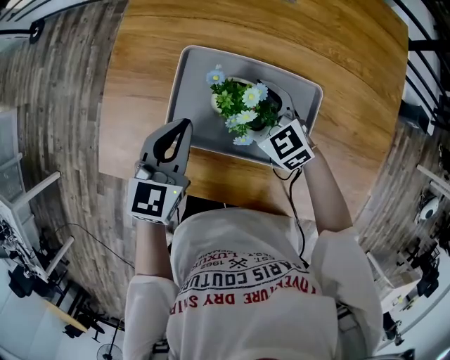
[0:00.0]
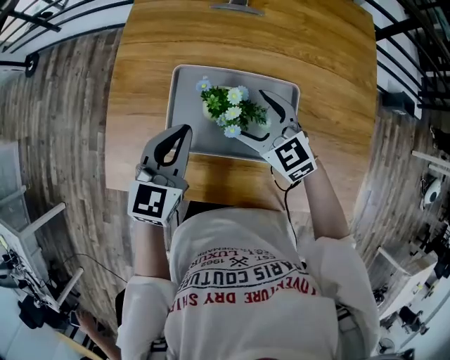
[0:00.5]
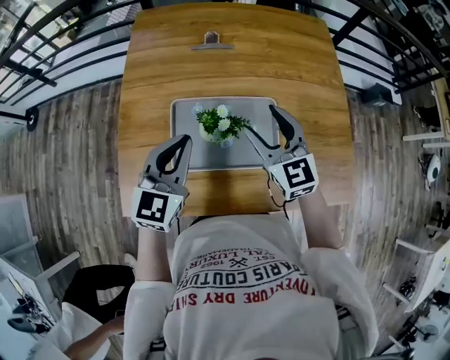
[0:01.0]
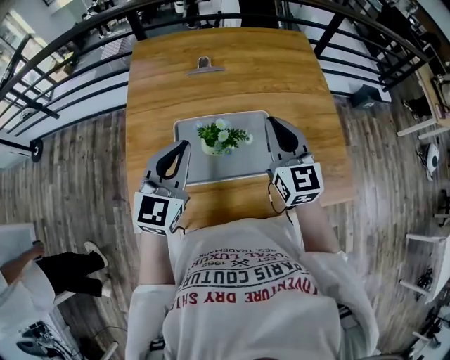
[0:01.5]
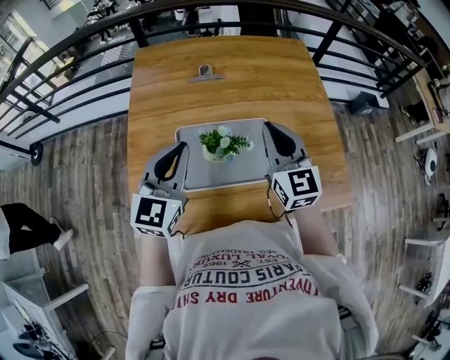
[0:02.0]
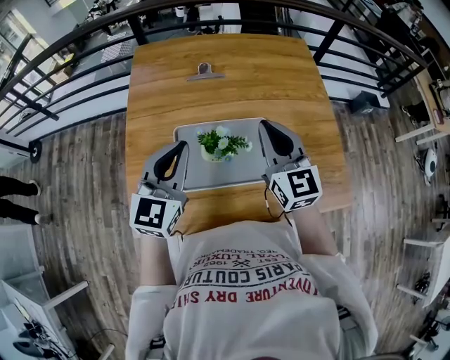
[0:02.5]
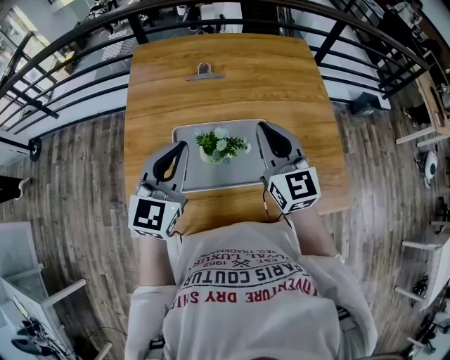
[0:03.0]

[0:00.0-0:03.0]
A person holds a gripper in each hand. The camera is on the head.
0:00.0 to 0:01.5: The left gripper is displaced upward by some 15 cm, and turns by approximately 30 degrees; the right gripper goes some 25 cm upward, turns by roughly 60 degrees, and closes.
0:01.5 to 0:03.0: The grippers move only a little.

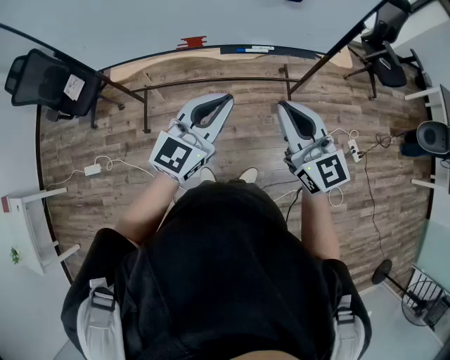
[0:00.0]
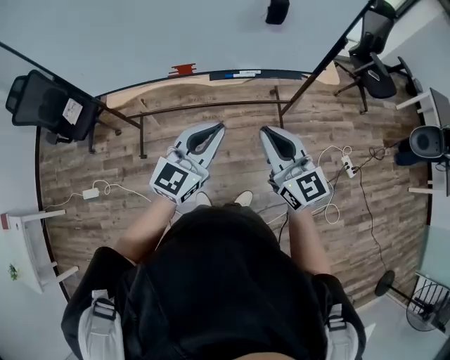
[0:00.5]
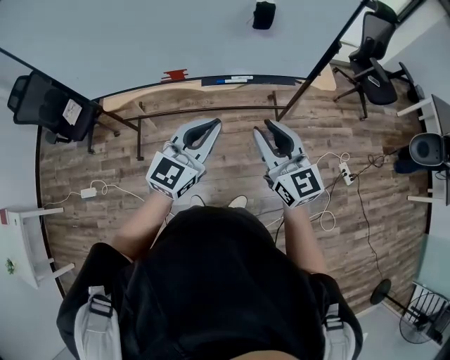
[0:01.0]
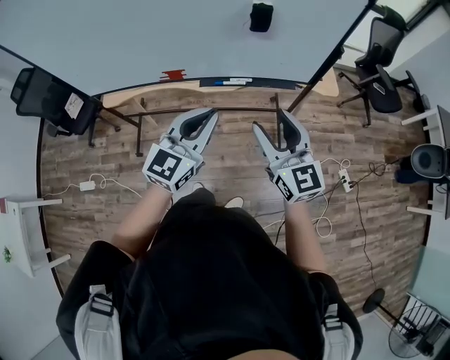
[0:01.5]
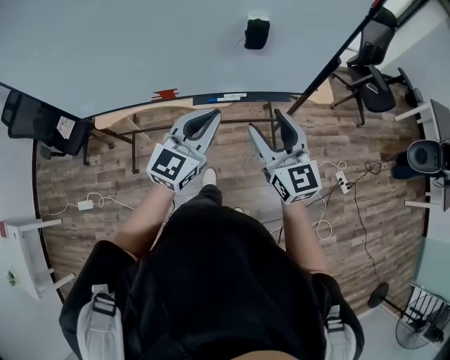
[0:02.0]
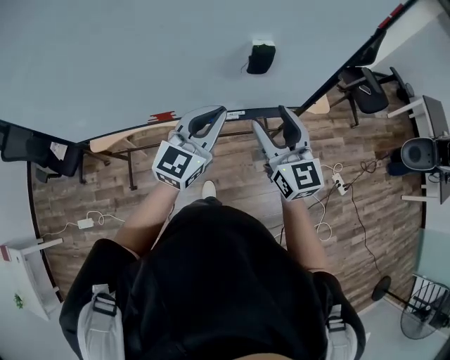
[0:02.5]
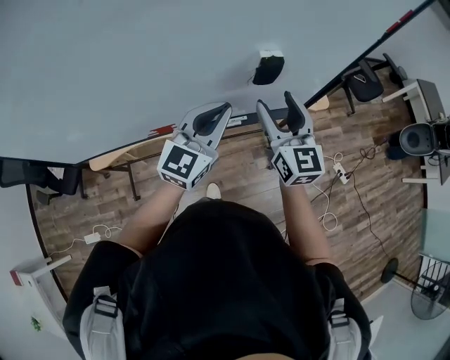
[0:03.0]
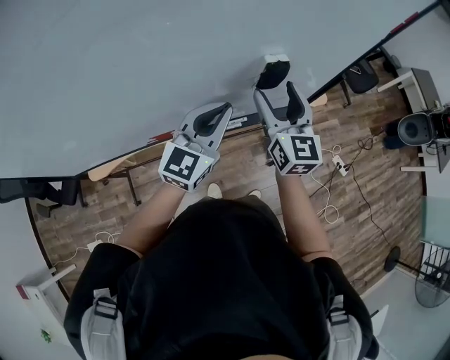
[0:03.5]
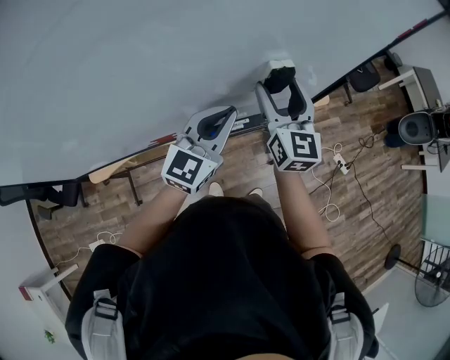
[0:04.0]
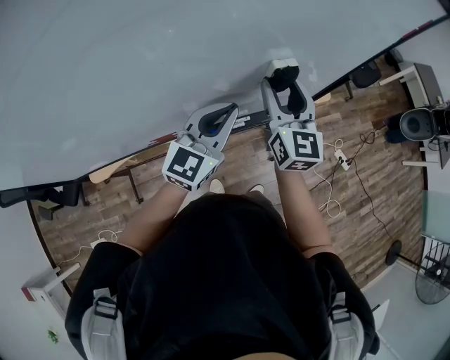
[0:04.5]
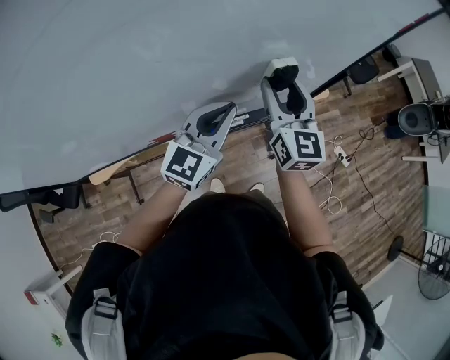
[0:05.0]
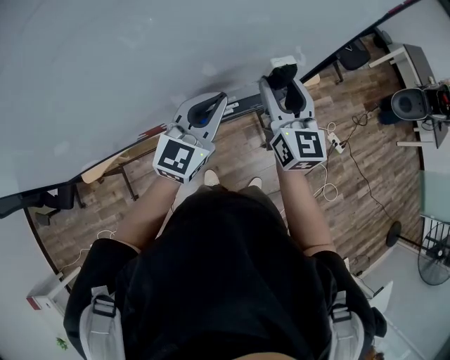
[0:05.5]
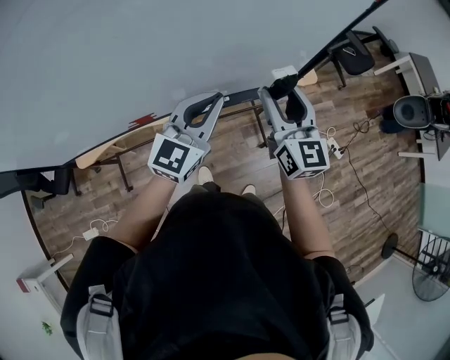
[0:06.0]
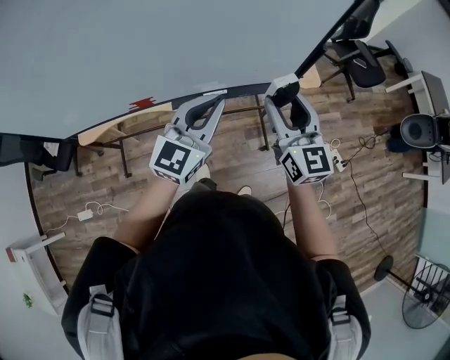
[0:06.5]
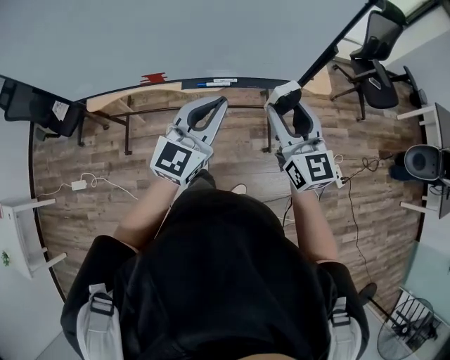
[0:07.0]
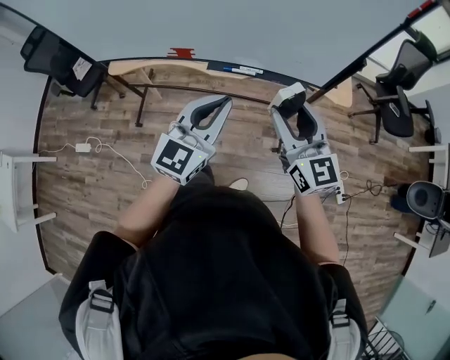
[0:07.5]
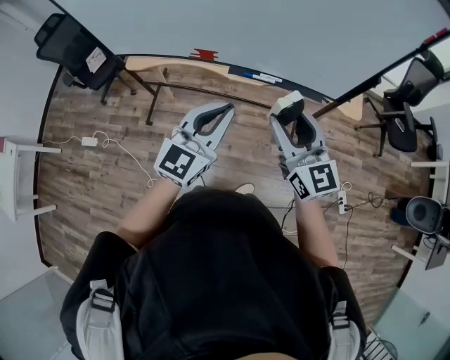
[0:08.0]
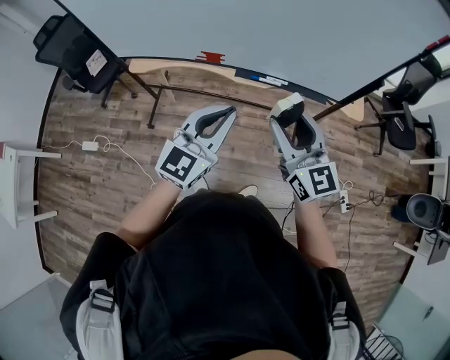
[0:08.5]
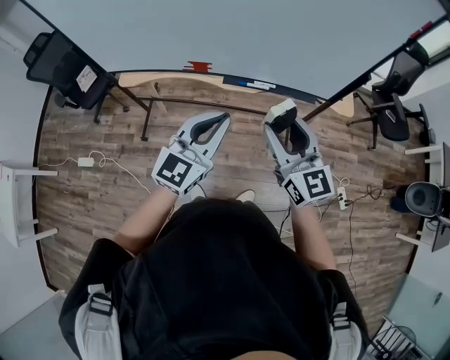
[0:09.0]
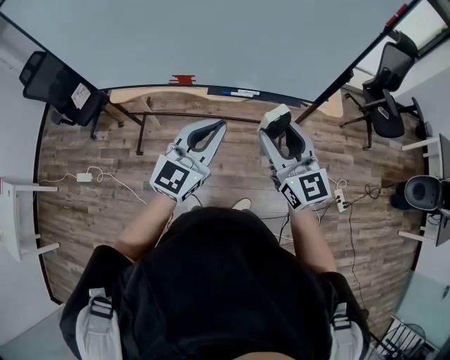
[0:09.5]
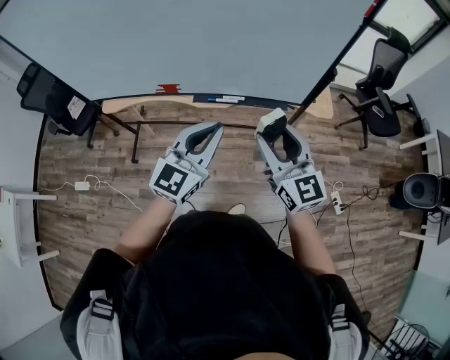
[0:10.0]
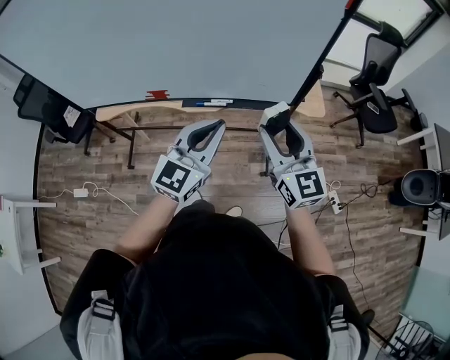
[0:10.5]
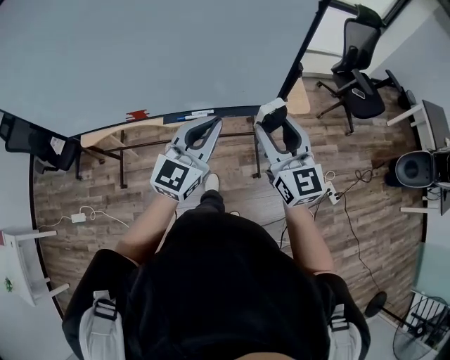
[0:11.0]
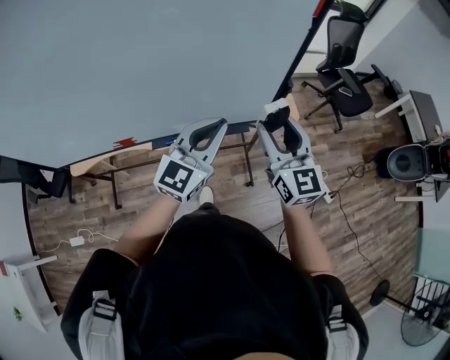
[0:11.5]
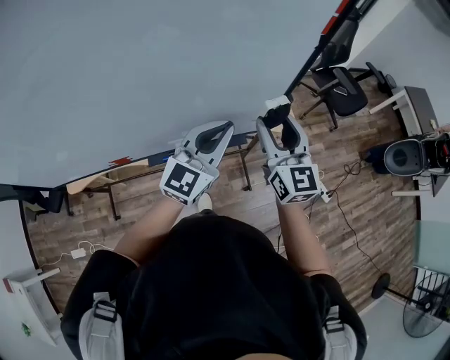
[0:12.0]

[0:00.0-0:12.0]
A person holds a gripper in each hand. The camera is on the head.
0:00.0 to 0:02.0: The two grippers go about 20 cm forward and to the right. The right gripper opens its fingers.
0:02.0 to 0:04.0: The two grippers go roughly 20 cm forward. The right gripper turns by approximately 30 degrees.
0:04.0 to 0:06.0: The right gripper moves to the right and backward, some 10 cm; the left gripper is displaced to the right by approximately 5 cm.
0:06.0 to 0:08.0: The left gripper changes place by about 25 cm, and changes its angle by approximately 30 degrees; the right gripper changes place by approximately 20 cm, and turns by approximately 40 degrees.
0:08.0 to 0:10.0: The grippers both shift to the right by some 10 cm.
0:10.0 to 0:12.0: The right gripper goes approximately 25 cm forward, and rotates roughly 30 degrees; the left gripper moves forward and to the right, roughly 30 cm.

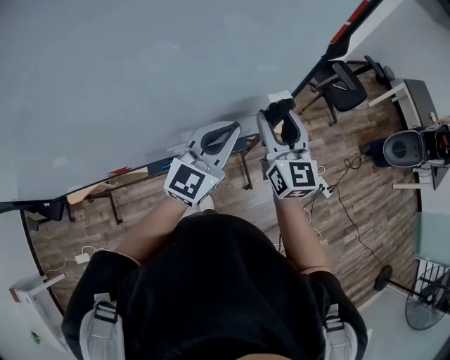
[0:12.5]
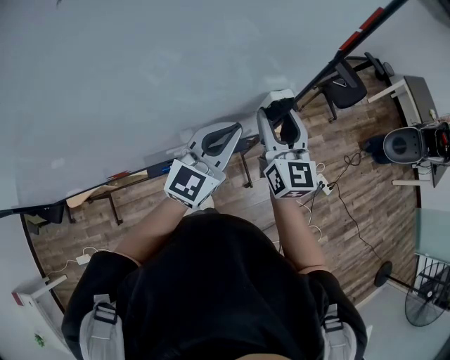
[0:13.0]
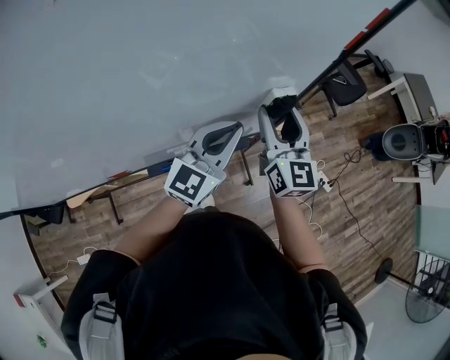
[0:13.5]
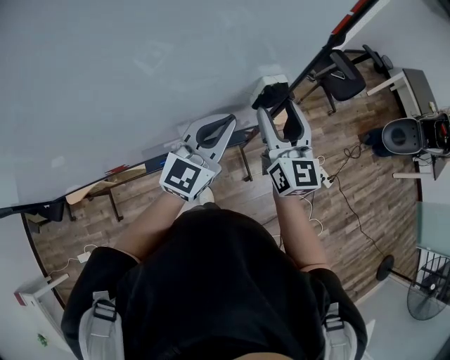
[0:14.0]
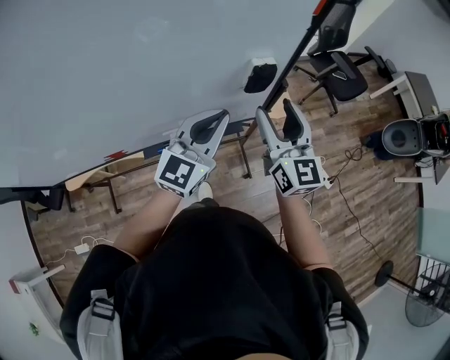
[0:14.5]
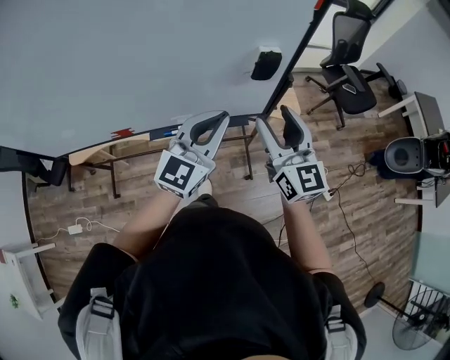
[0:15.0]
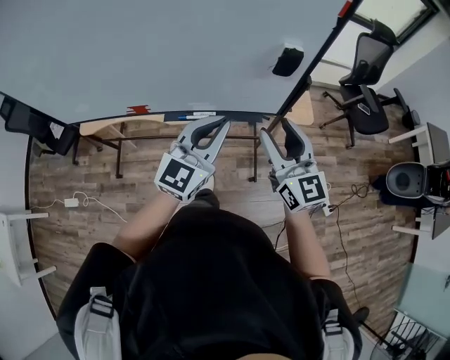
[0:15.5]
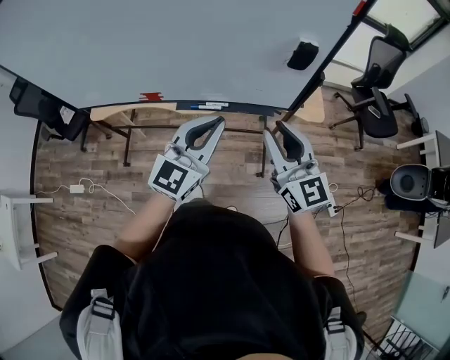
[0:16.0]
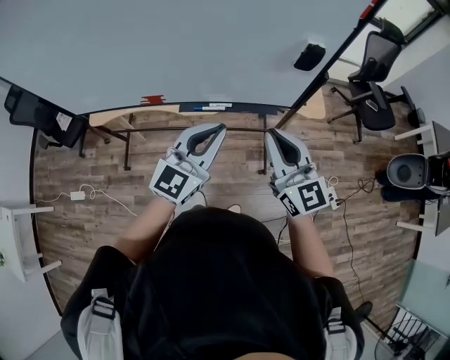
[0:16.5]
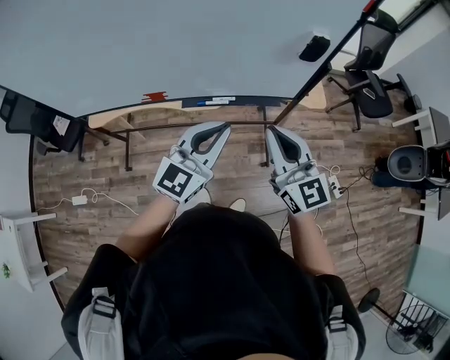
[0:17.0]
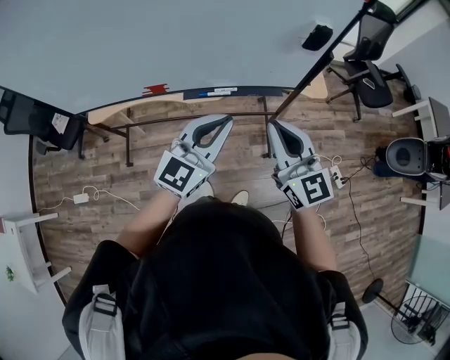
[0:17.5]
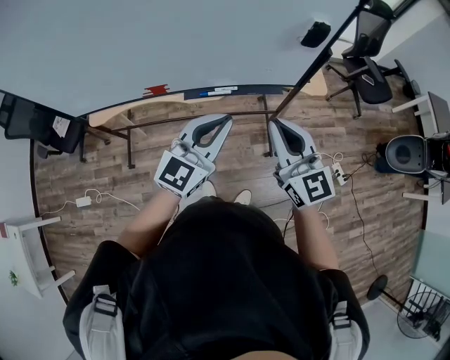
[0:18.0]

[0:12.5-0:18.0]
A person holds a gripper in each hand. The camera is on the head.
0:12.5 to 0:14.5: The right gripper changes place by about 5 cm.
0:14.5 to 0:16.0: The grippers both shift backward by roughly 20 cm. The right gripper changes its angle by some 30 degrees, and closes its fingers.
0:16.0 to 0:18.0: The left gripper travels to the left by some 5 cm. The right gripper is displaced to the left and backward by approximately 10 cm, and closes its fingers.

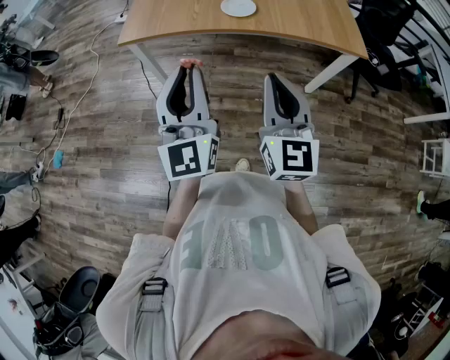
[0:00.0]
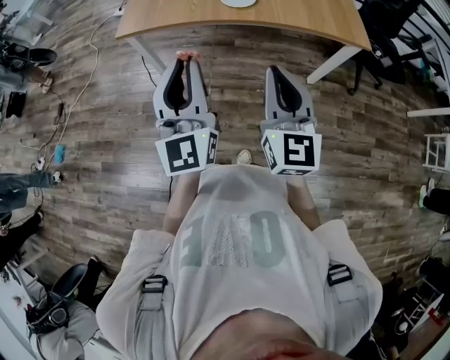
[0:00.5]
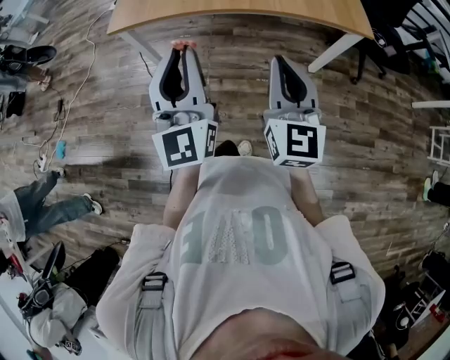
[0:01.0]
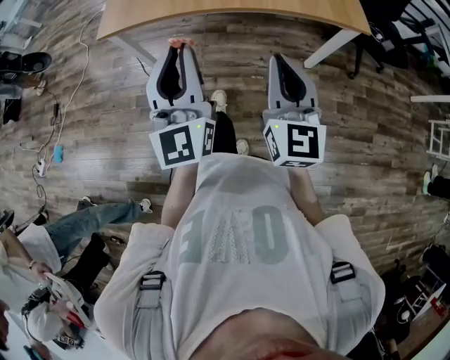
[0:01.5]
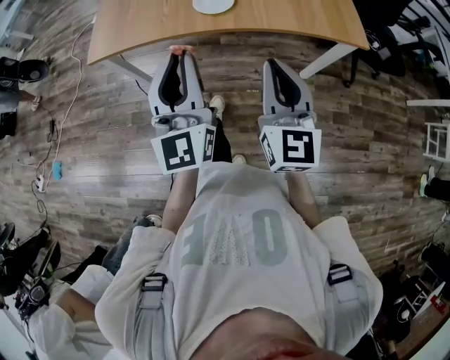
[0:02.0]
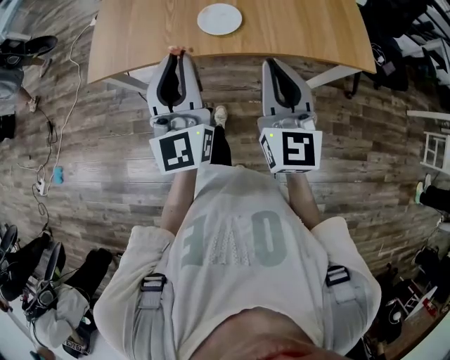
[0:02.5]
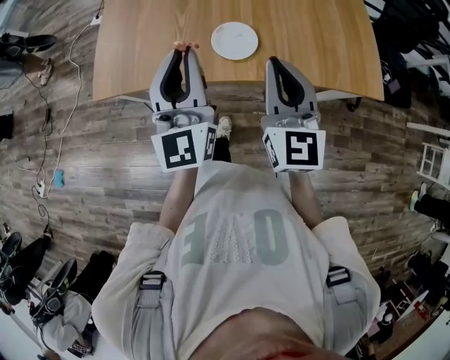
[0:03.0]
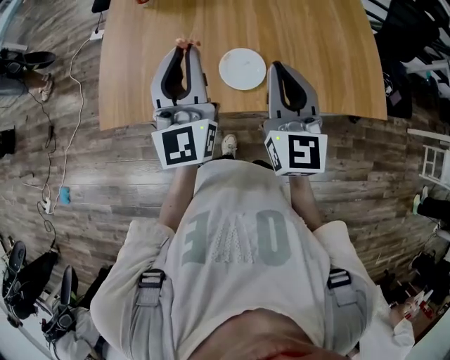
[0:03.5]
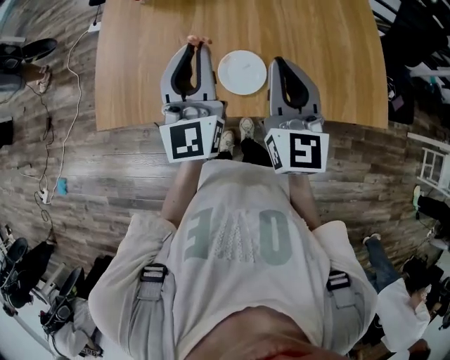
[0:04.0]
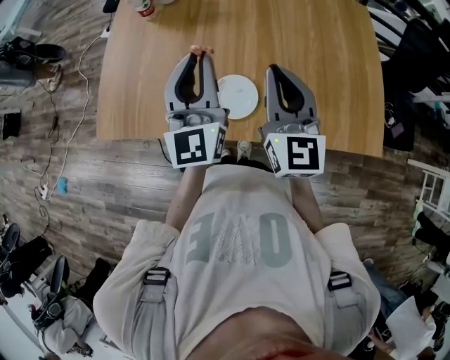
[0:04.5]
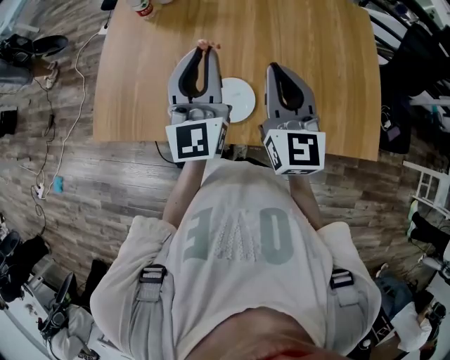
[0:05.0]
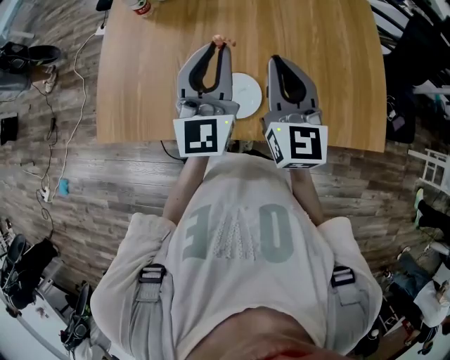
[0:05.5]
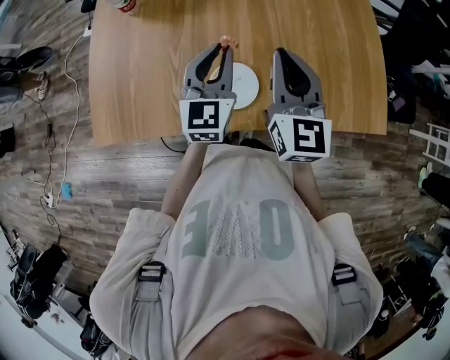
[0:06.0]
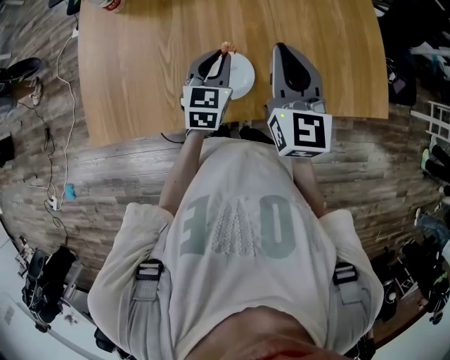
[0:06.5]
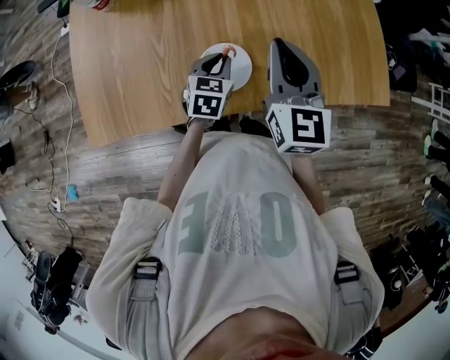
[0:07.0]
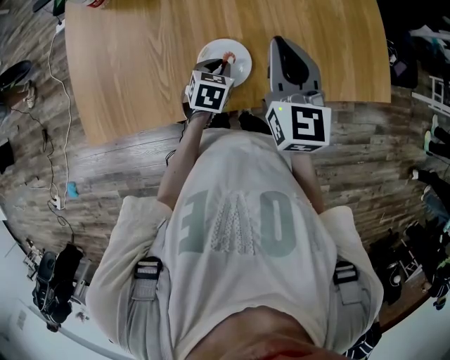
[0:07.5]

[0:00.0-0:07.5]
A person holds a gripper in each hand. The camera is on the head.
0:00.0 to 0:02.0: The grippers both shift forward and to the right by some 15 cm.
0:02.0 to 0:04.0: Both grippers travel together forward, approximately 35 cm.
0:04.0 to 0:05.5: The right gripper heads forward, covering approximately 10 cm; the left gripper travels forward and to the right by about 10 cm.
0:05.5 to 0:07.5: The right gripper heads downward, covering about 5 cm, while the left gripper shifts some 30 cm downward, and tilts its fingers roughly 60 degrees downward.
